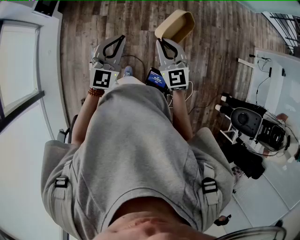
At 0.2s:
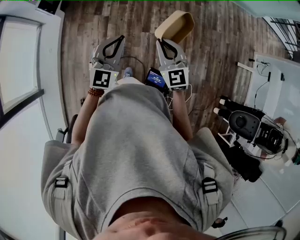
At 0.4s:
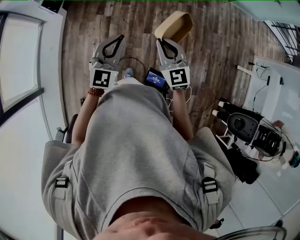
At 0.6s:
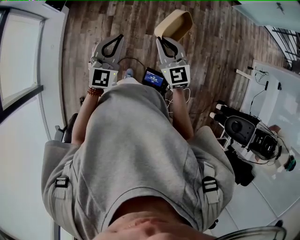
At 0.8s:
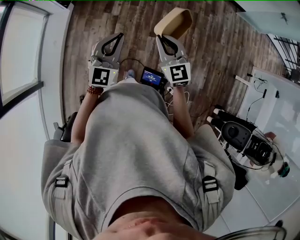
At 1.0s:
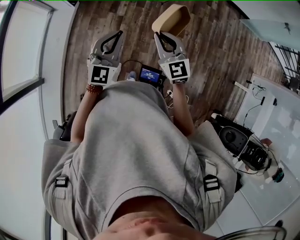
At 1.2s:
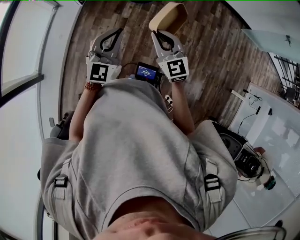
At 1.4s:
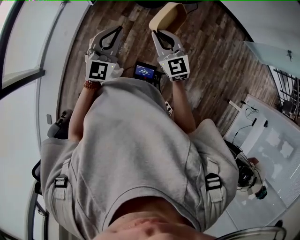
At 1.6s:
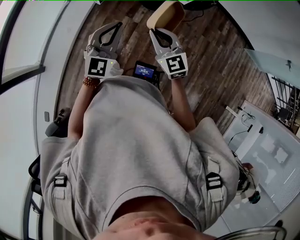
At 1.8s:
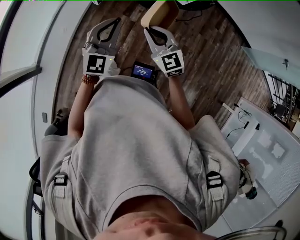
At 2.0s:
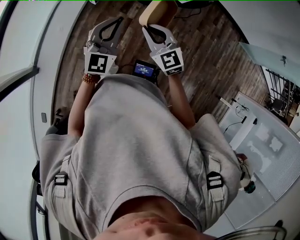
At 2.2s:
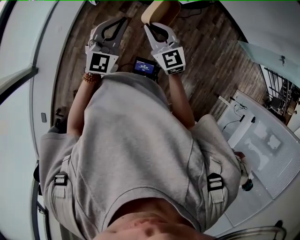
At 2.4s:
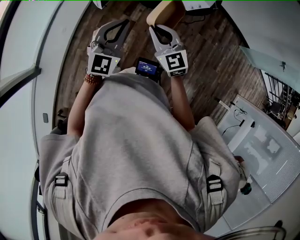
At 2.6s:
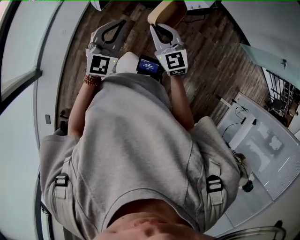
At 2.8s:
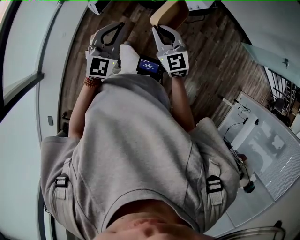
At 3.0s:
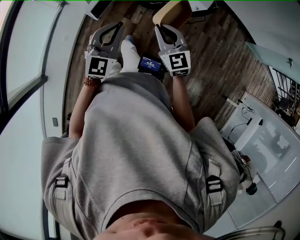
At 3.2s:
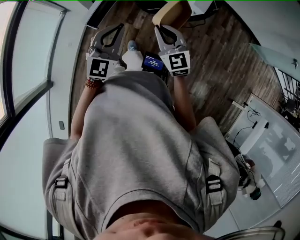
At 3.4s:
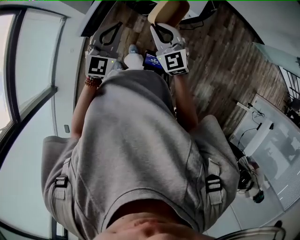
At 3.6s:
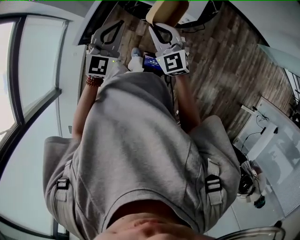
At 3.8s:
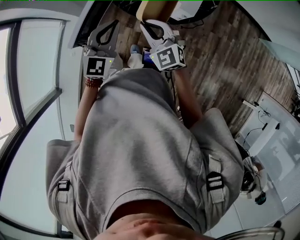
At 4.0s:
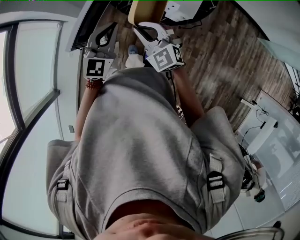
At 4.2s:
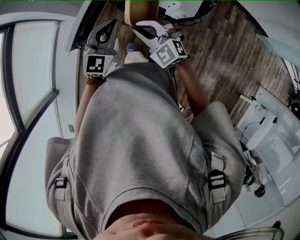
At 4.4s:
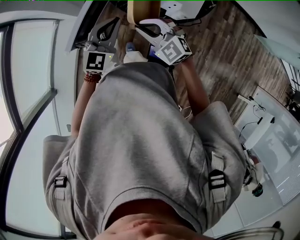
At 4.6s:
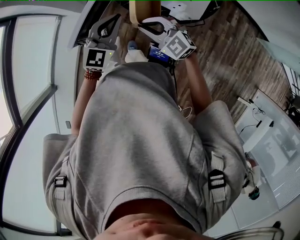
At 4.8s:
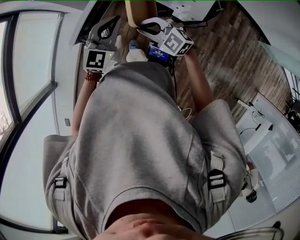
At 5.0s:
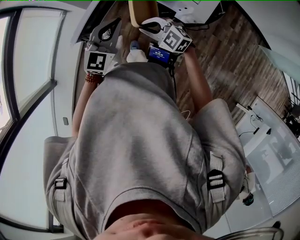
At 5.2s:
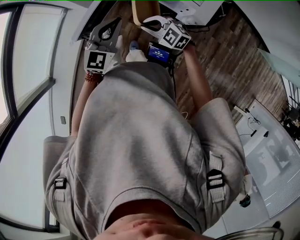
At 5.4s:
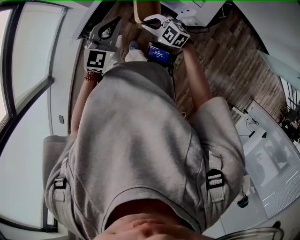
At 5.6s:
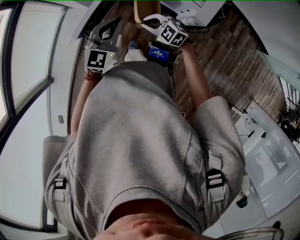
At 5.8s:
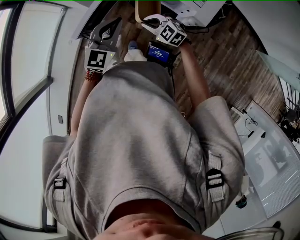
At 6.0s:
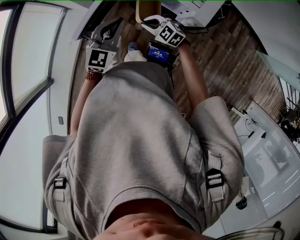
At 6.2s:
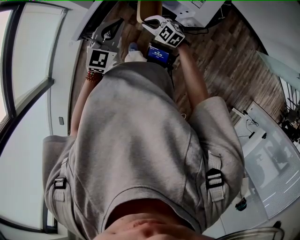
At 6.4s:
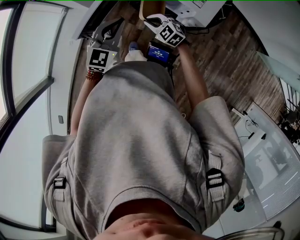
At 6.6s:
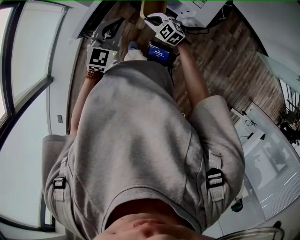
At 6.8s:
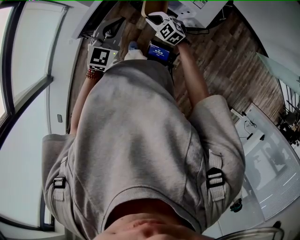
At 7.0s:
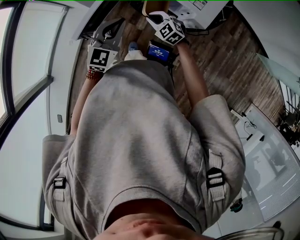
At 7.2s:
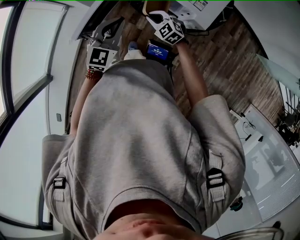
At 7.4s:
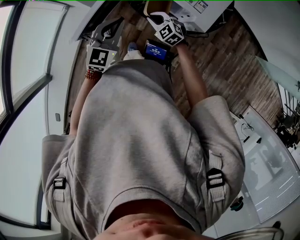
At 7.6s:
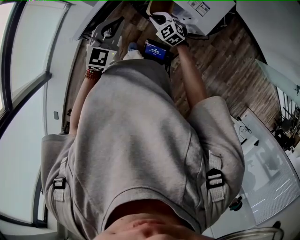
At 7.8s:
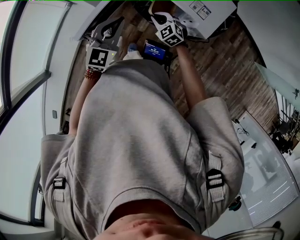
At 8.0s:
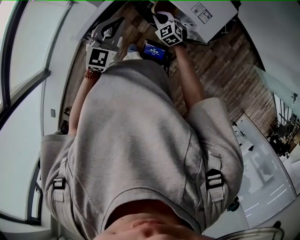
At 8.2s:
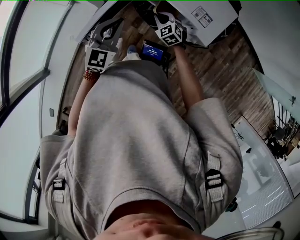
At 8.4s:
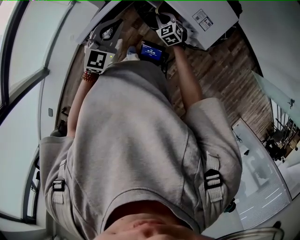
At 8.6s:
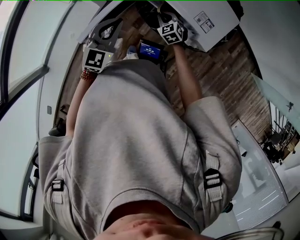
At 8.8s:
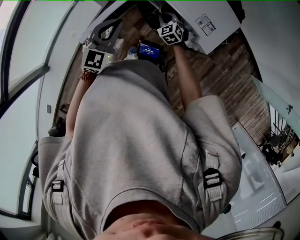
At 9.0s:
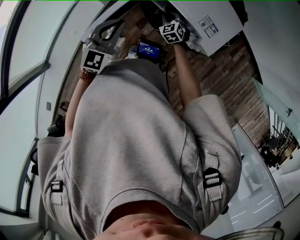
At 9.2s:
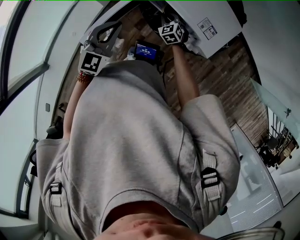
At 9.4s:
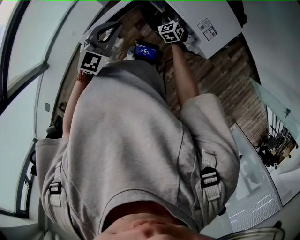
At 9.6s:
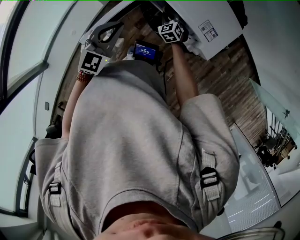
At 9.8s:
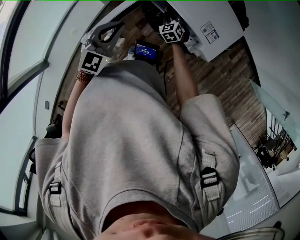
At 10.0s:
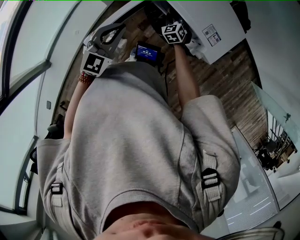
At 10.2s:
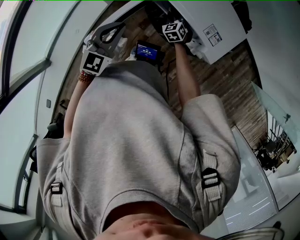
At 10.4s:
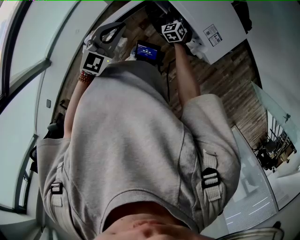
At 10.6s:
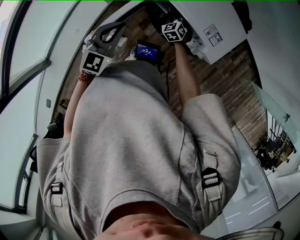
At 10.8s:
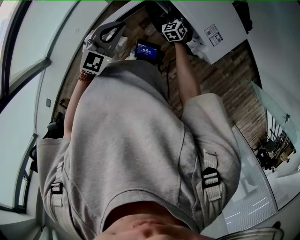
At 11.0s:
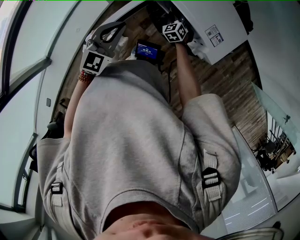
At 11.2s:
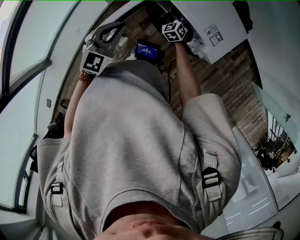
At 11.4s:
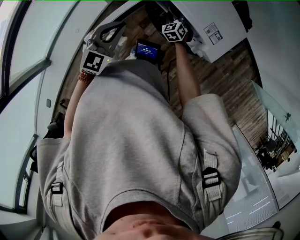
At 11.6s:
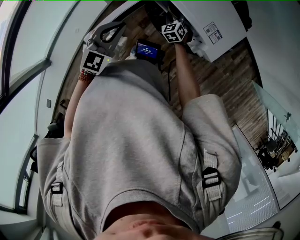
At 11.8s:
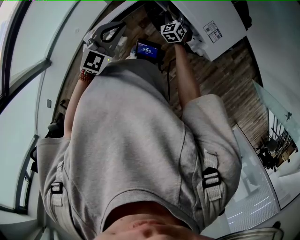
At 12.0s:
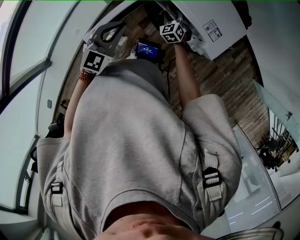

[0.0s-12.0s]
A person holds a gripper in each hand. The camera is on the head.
0.0s to 1.6s: The right gripper changes place by approximately 35 cm, and changes its angle by about 30 degrees, while the left gripper changes place by about 30 cm, and rotates some 20 degrees.
1.6s to 3.0s: The two grippers go approximately 15 cm forward.
3.0s to 4.4s: The right gripper is displaced forward by roughly 10 cm, and turns by roughly 30 degrees. Meanwhile the left gripper travels forward and to the right by some 20 cm.
4.4s to 6.0s: The right gripper goes approximately 15 cm downward, and rotates approximately 20 degrees.
6.0s to 7.6s: The right gripper is displaced forward by roughly 5 cm.
7.6s to 9.0s: The left gripper moves roughly 5 cm. Meanwhile the right gripper travels forward by roughly 10 cm.
9.0s to 12.0s: The grippers stay close to where they were, moving slightly.

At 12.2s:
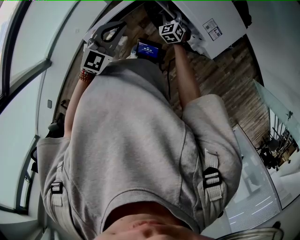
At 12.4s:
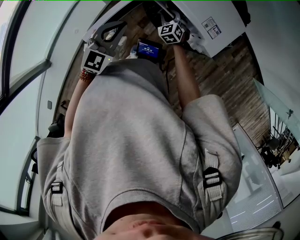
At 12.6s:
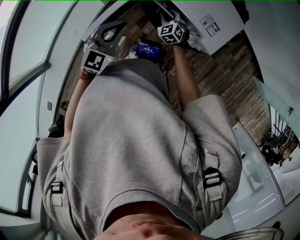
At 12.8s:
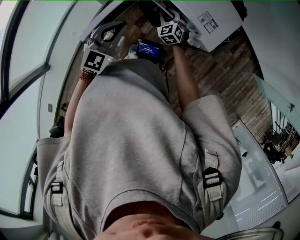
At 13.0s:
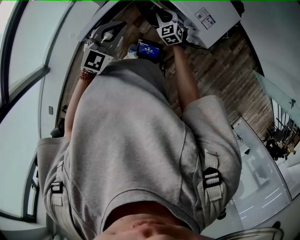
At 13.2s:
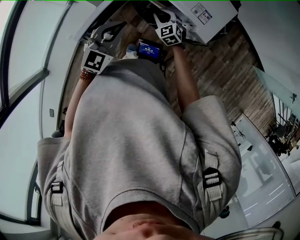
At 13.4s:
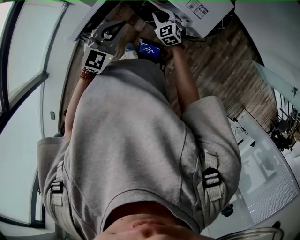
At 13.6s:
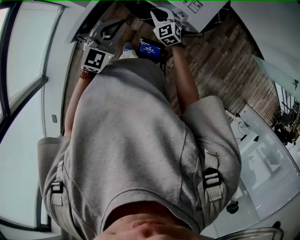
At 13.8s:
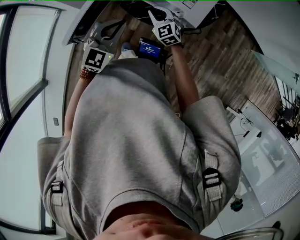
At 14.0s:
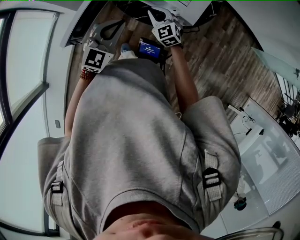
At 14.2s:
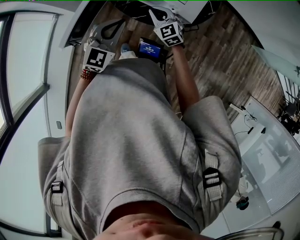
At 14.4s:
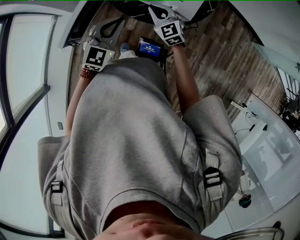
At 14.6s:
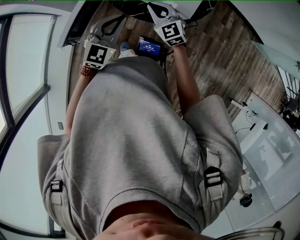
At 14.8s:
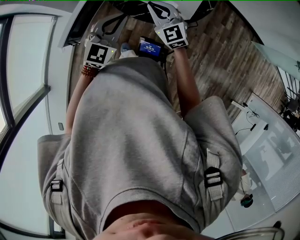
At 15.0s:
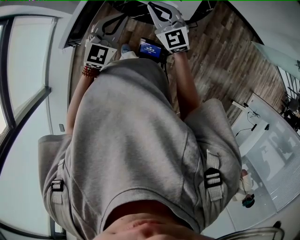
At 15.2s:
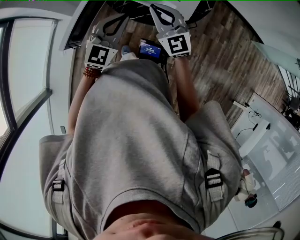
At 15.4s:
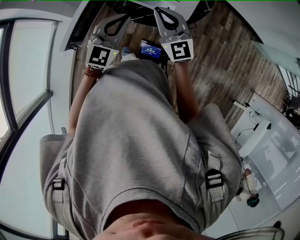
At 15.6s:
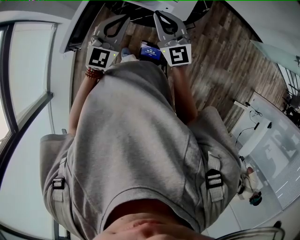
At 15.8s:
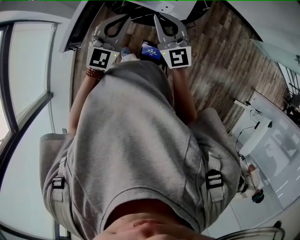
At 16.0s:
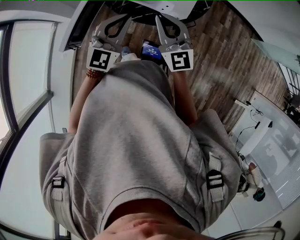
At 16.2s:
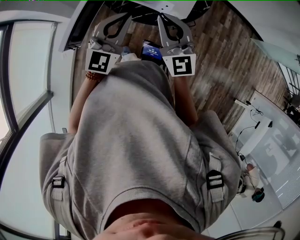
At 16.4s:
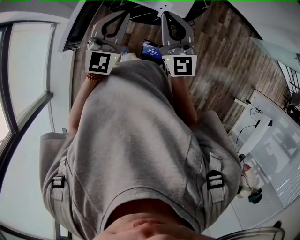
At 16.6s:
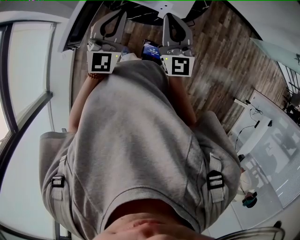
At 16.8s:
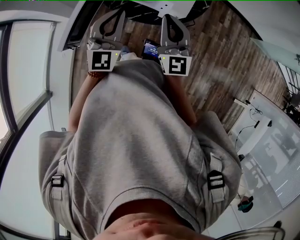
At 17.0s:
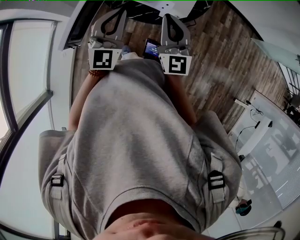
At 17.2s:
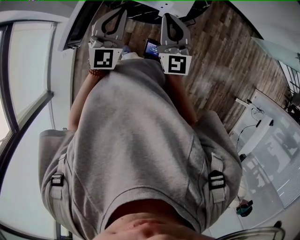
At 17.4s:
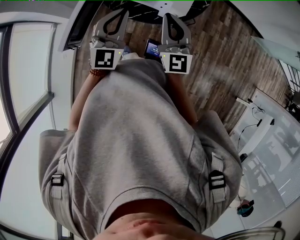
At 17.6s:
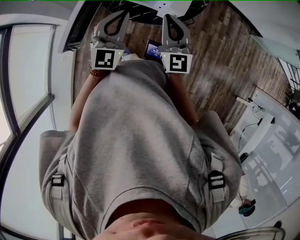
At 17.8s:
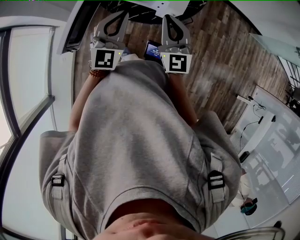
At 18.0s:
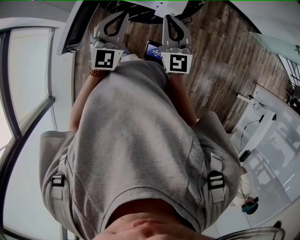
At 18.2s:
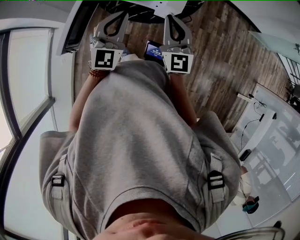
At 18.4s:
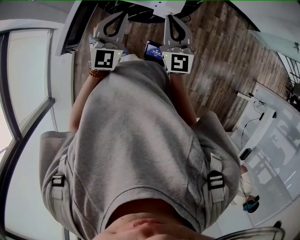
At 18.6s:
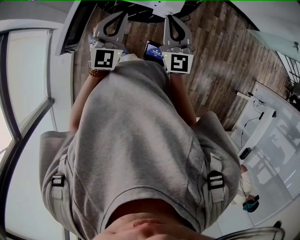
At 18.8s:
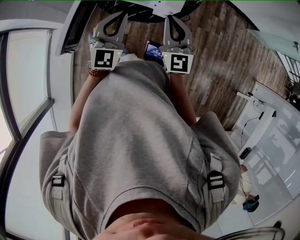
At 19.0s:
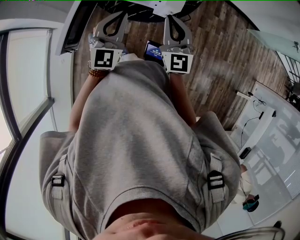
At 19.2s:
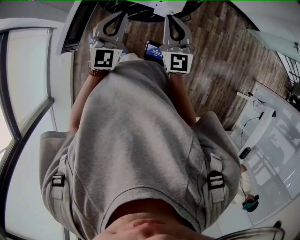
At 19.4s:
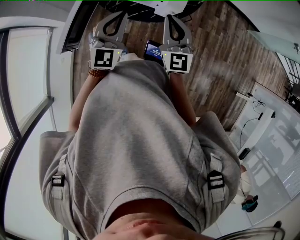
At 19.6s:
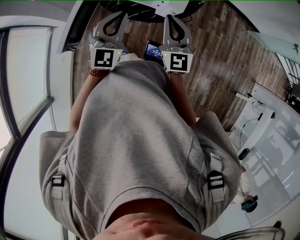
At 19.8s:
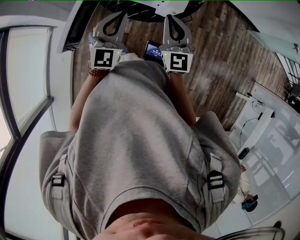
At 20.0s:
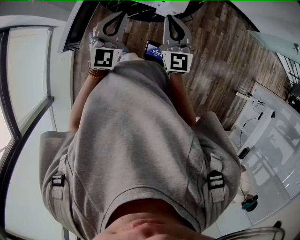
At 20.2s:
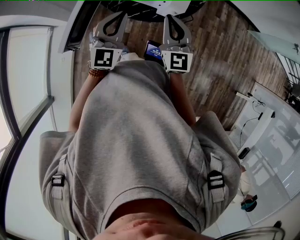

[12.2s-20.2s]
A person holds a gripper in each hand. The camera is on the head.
12.2s to 13.8s: The left gripper heads to the right, covering approximately 10 cm, while the right gripper shifts roughly 15 cm upward, backward and to the right.
13.8s to 15.4s: The left gripper ends up approximately 5 cm from where it was. The right gripper heads upward, covering approximately 20 cm, and swivels approximately 30 degrees.
15.4s to 17.0s: The right gripper changes place by some 5 cm.
17.0s to 20.2s: The grippers stay close to where they were, moving slightly.

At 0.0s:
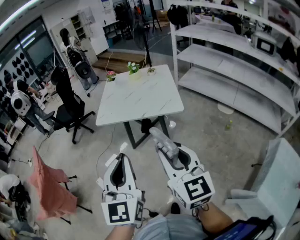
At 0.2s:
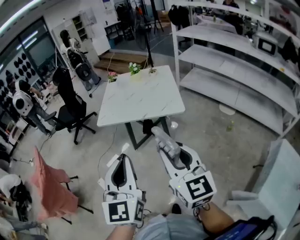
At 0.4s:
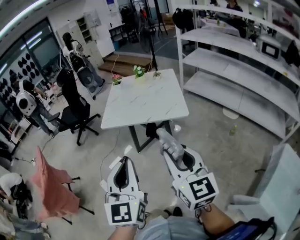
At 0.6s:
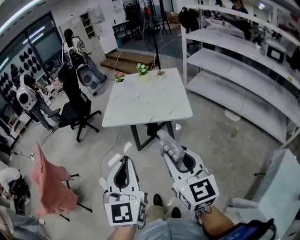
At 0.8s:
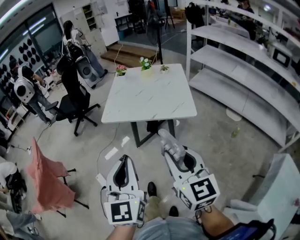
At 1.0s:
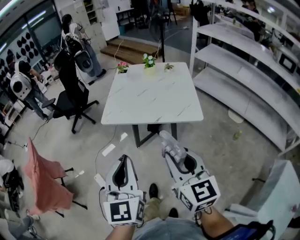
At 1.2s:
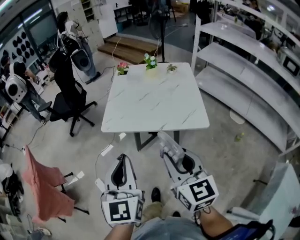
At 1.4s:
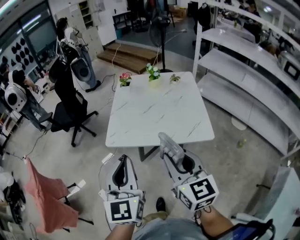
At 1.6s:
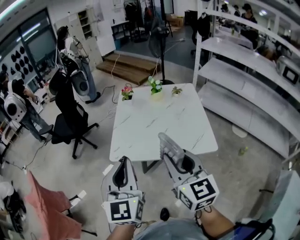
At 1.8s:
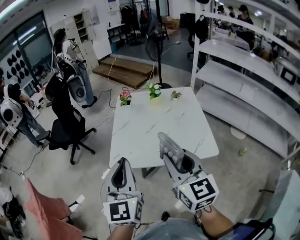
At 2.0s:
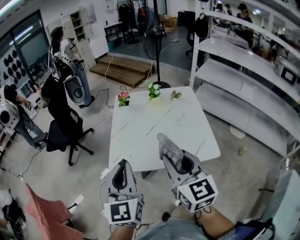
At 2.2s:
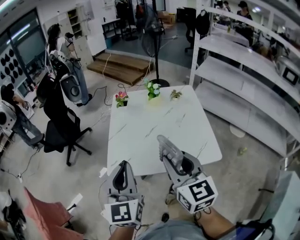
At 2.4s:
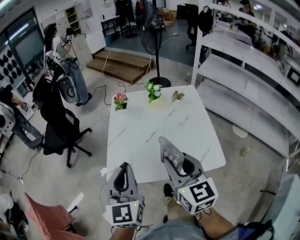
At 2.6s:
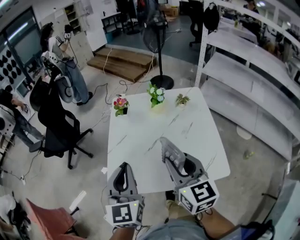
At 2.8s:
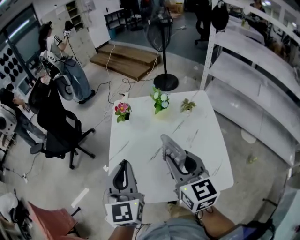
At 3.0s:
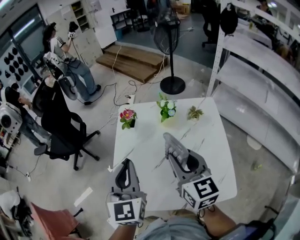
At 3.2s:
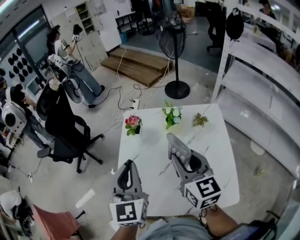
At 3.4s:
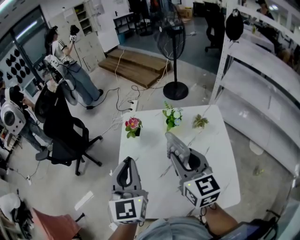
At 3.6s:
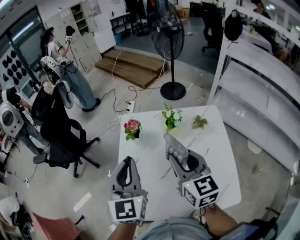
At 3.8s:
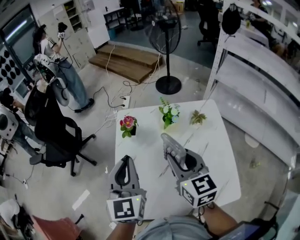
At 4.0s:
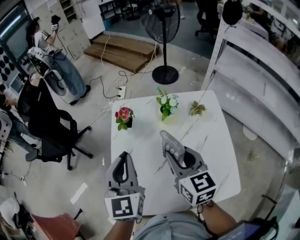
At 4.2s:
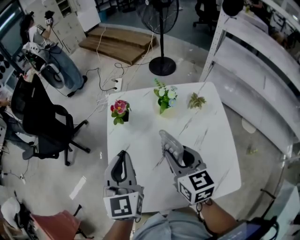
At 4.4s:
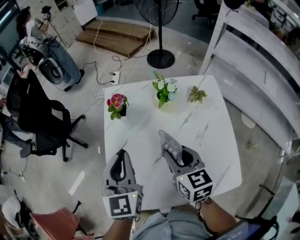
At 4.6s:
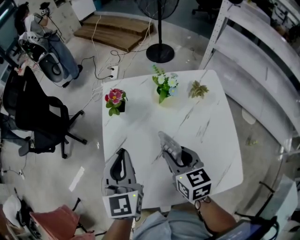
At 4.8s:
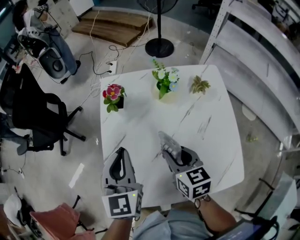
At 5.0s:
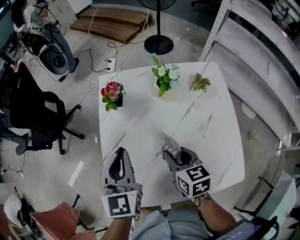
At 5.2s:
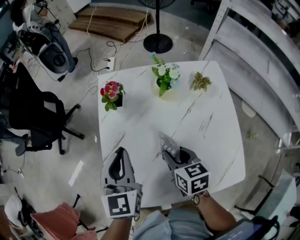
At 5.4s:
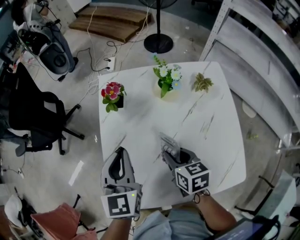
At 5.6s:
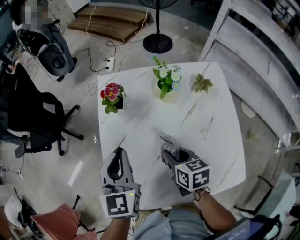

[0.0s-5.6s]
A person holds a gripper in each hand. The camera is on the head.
0.0s to 1.4s: The grippers both shift forward by approximately 25 cm.
1.4s to 2.8s: Both grippers move forward, some 35 cm.
2.8s to 4.2s: The right gripper shifts roughly 15 cm forward and downward. Meanwhile the left gripper shifts roughly 10 cm forward.
4.2s to 5.6s: The left gripper travels downward by roughly 5 cm. Meanwhile the right gripper is displaced downward by approximately 15 cm, and swivels roughly 30 degrees.
